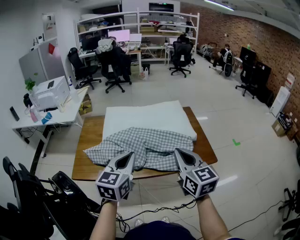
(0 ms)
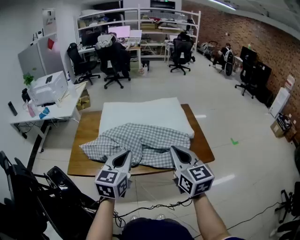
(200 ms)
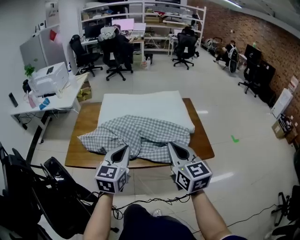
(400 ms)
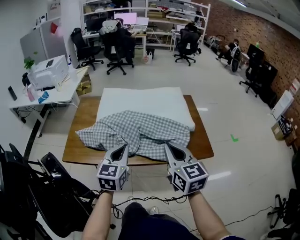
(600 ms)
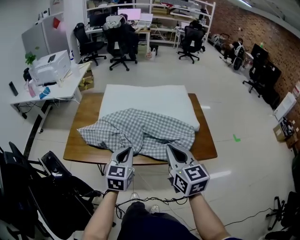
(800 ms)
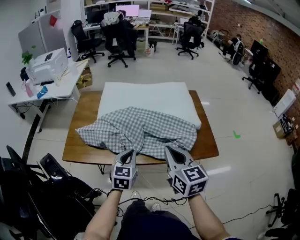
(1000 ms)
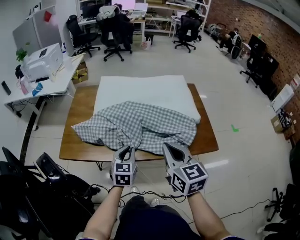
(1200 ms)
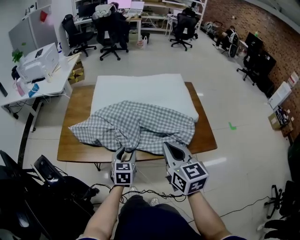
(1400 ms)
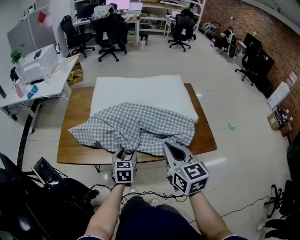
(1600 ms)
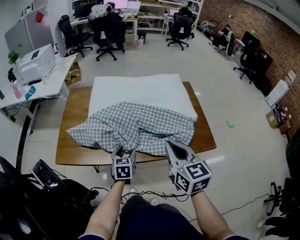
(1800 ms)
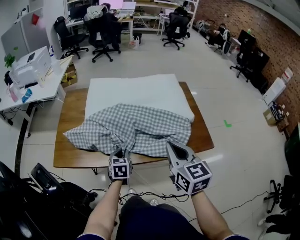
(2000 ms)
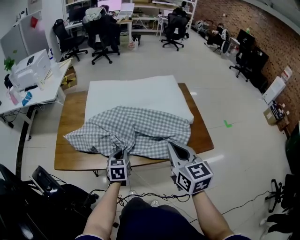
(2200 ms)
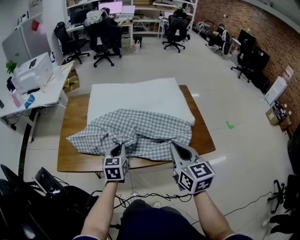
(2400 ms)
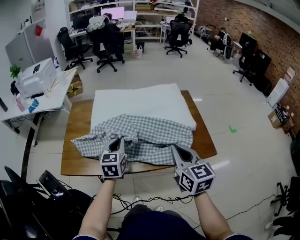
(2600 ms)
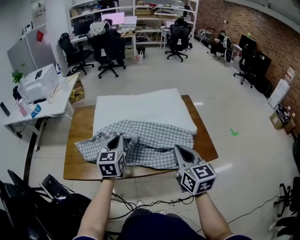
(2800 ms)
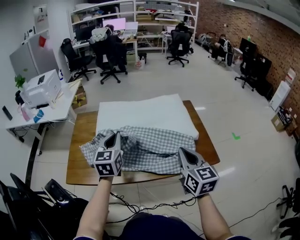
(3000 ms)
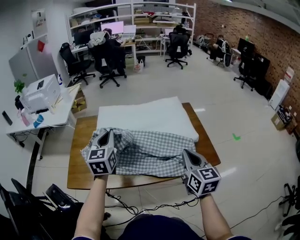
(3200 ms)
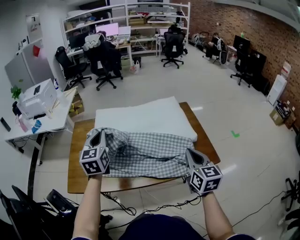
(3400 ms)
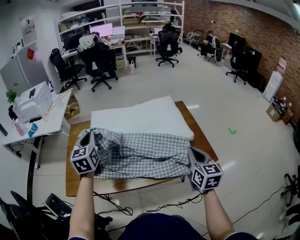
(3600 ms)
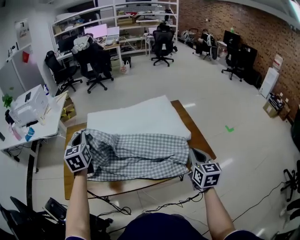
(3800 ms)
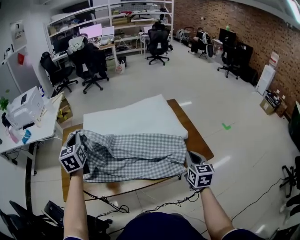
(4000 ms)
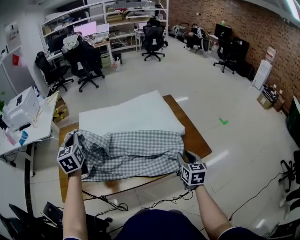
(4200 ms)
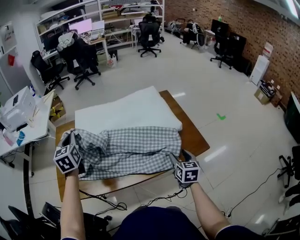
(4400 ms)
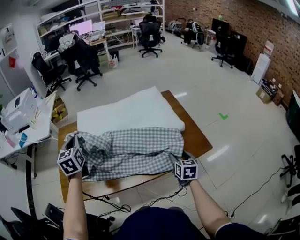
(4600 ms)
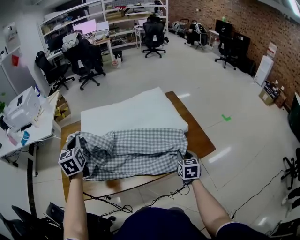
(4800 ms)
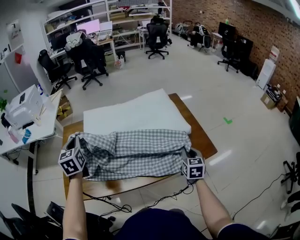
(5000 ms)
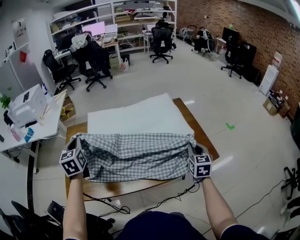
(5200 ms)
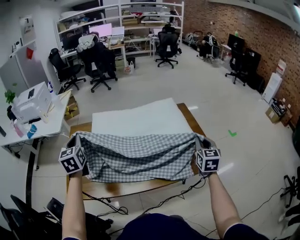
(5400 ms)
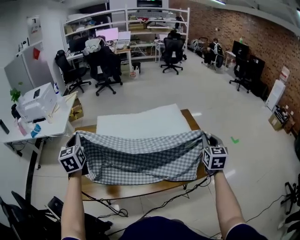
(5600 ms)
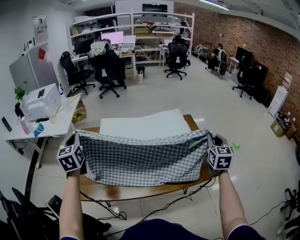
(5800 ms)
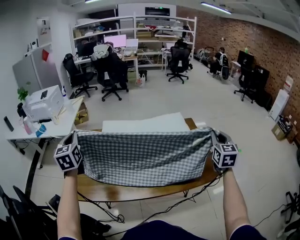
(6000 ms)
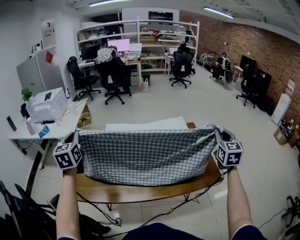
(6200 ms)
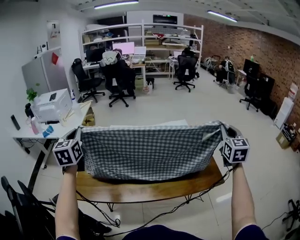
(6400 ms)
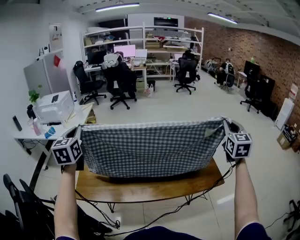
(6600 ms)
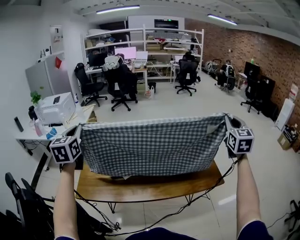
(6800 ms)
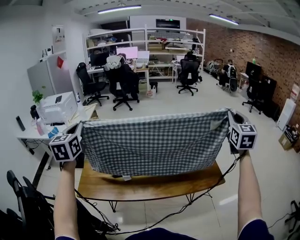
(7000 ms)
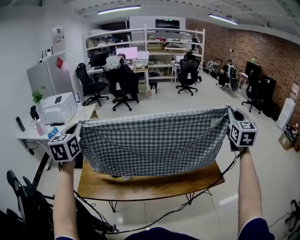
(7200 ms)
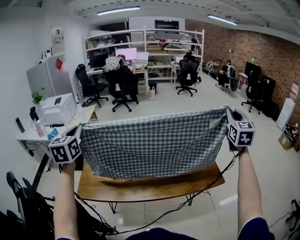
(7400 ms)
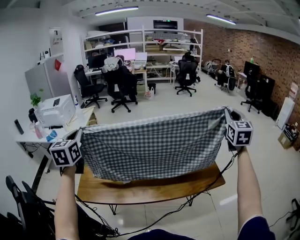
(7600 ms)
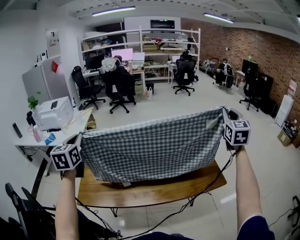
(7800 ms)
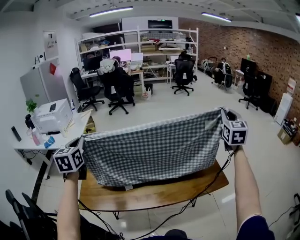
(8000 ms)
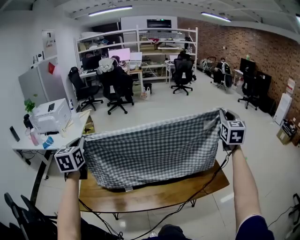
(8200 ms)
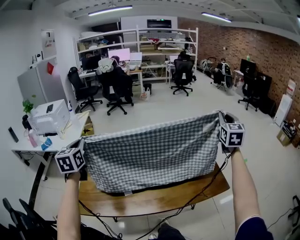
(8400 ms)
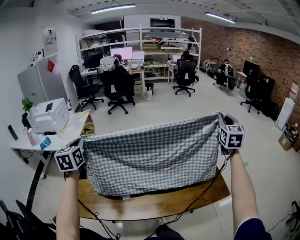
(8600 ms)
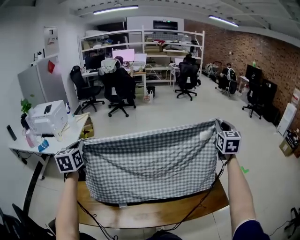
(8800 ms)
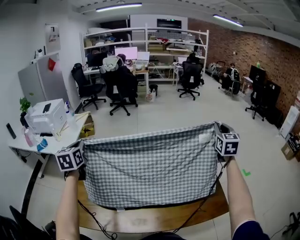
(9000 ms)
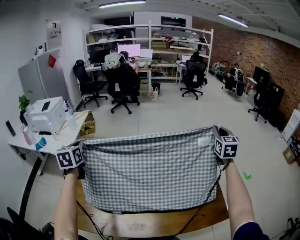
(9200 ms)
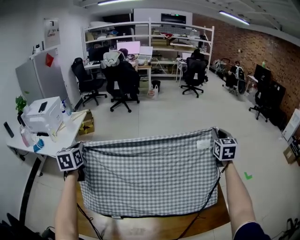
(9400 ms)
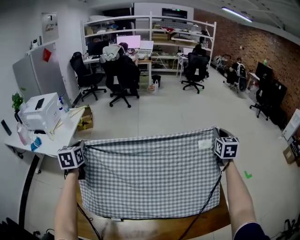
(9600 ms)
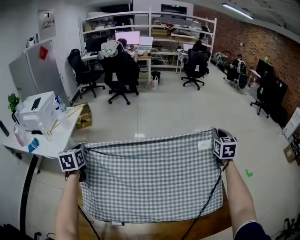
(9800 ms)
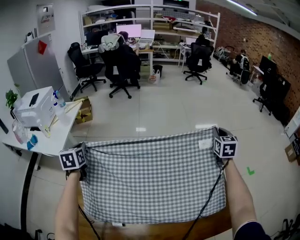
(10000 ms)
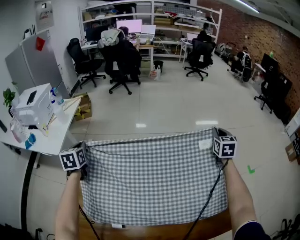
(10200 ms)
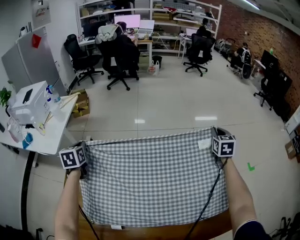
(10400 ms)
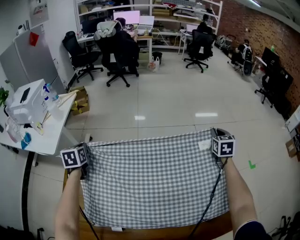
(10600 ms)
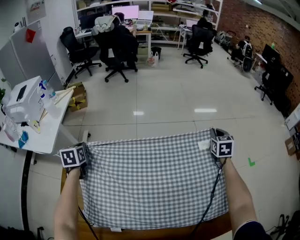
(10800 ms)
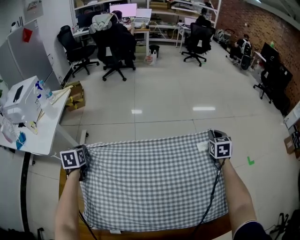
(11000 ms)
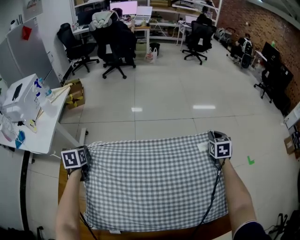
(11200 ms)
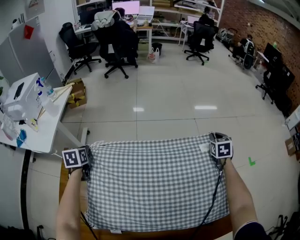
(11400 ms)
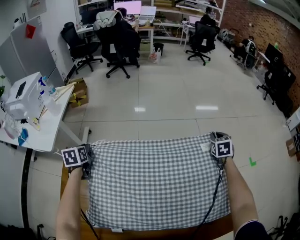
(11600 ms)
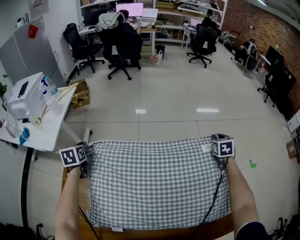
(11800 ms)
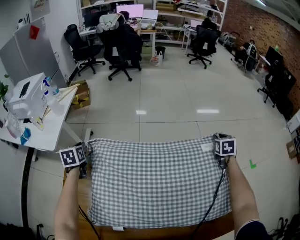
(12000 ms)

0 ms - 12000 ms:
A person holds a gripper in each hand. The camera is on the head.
0 ms - 1600 ms: The left gripper is displaced downward by roughly 25 cm, swivels roughly 30 degrees, and opens up. Meanwhile the right gripper goes roughly 10 cm downward.
1600 ms - 3000 ms: The right gripper is displaced to the right by approximately 5 cm. Meanwhile the left gripper is displaced upward and forward by some 25 cm, swivels some 20 degrees, and closes up.
3000 ms - 4400 ms: The left gripper travels to the left and forward by about 15 cm. Meanwhile the right gripper goes about 20 cm downward and to the right, turns by approximately 30 degrees, and opens its fingers.
4400 ms - 6000 ms: The left gripper is displaced to the left and upward by some 15 cm. Meanwhile the right gripper goes roughly 25 cm upward and forward, rotates roughly 30 degrees, and closes.
6000 ms - 7600 ms: The right gripper is displaced upward by approximately 15 cm. Meanwhile the left gripper goes some 10 cm upward.
7600 ms - 9000 ms: The two grippers go approximately 20 cm forward and downward.
9000 ms - 10400 ms: Both grippers move downward and forward, about 25 cm. The right gripper rotates roughly 20 degrees.
10400 ms - 12000 ms: The left gripper travels downward by roughly 5 cm. Meanwhile the right gripper shifts approximately 10 cm downward.

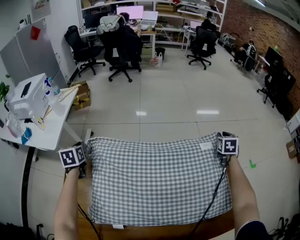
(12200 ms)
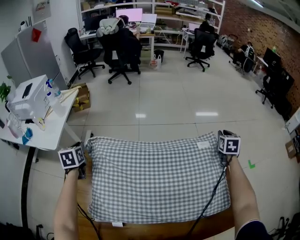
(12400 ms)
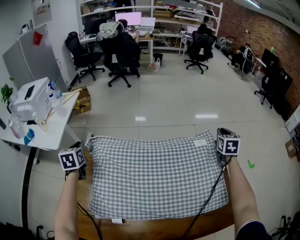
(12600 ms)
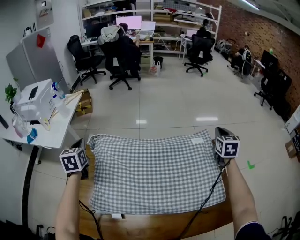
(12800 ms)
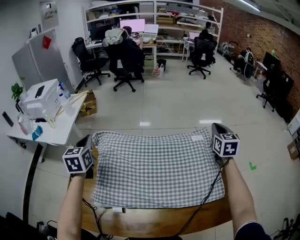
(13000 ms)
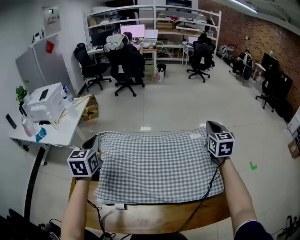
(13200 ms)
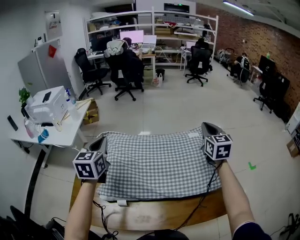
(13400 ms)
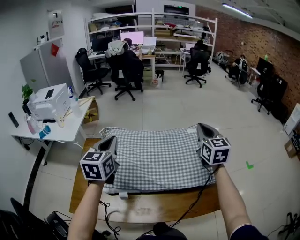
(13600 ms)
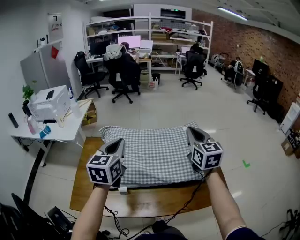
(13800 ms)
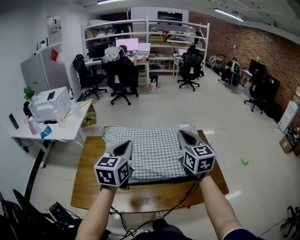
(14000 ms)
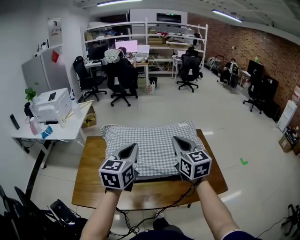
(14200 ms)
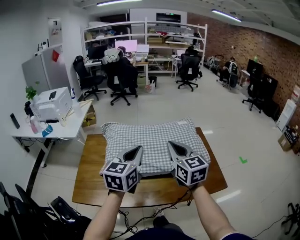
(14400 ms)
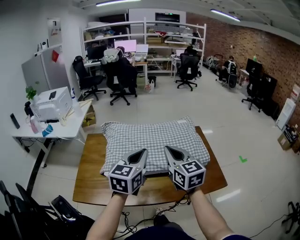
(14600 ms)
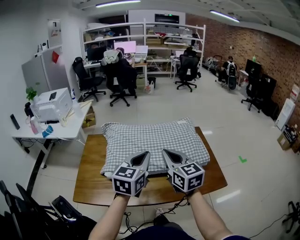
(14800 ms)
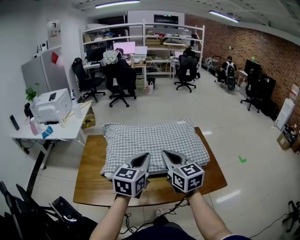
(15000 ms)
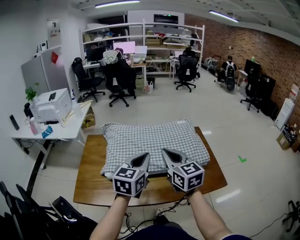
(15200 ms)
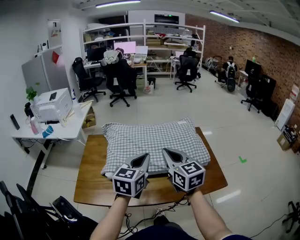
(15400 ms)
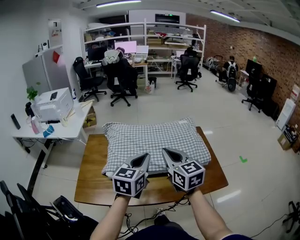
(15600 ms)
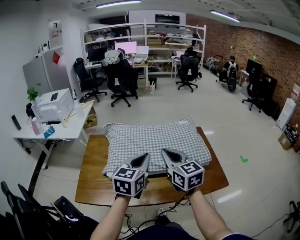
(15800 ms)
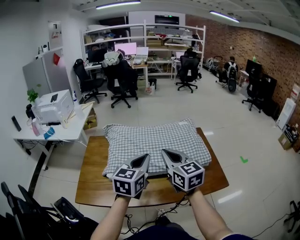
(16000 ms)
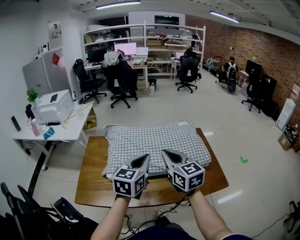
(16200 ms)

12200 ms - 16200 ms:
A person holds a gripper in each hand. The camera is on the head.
12200 ms - 13600 ms: The right gripper moves upward, backward and to the left, approximately 35 cm, tips its fingers upward by about 30 degrees, and closes its fingers, while the left gripper shifts approximately 35 cm upward, to the right and backward, and turns by roughly 40 degrees.
13600 ms - 14800 ms: The left gripper is displaced backward and to the right by roughly 20 cm. The right gripper goes approximately 25 cm backward and to the left.
14800 ms - 16200 ms: The grippers stay close to where they were, moving slightly.

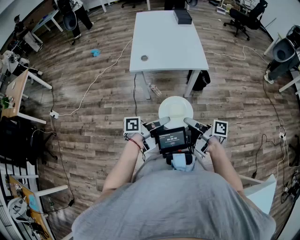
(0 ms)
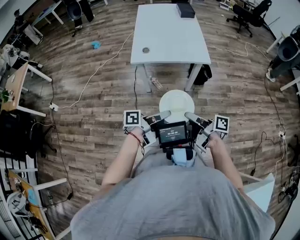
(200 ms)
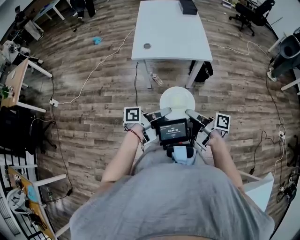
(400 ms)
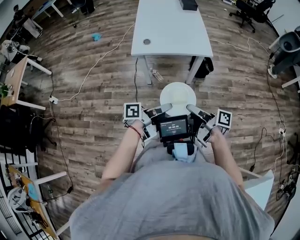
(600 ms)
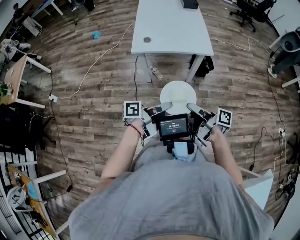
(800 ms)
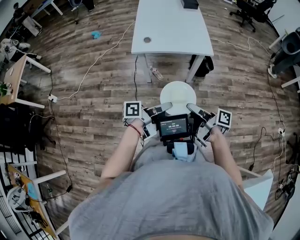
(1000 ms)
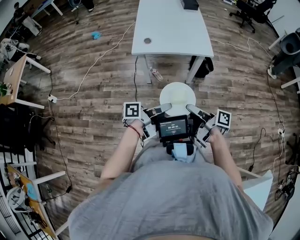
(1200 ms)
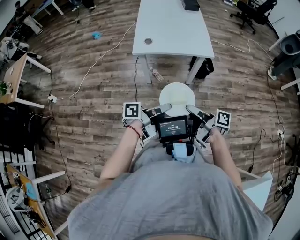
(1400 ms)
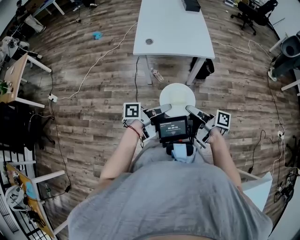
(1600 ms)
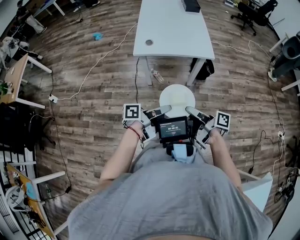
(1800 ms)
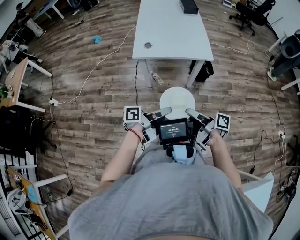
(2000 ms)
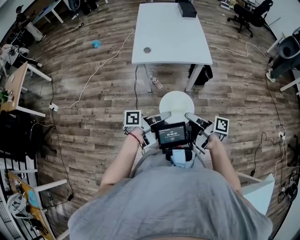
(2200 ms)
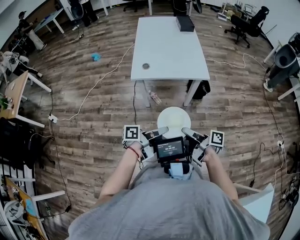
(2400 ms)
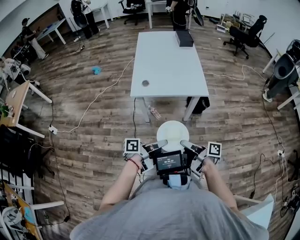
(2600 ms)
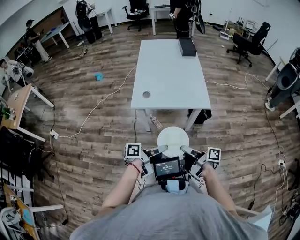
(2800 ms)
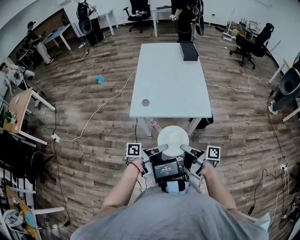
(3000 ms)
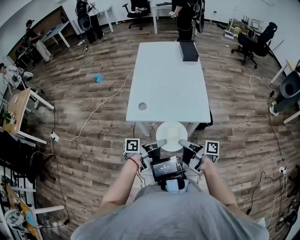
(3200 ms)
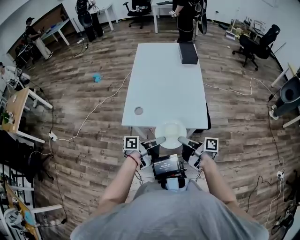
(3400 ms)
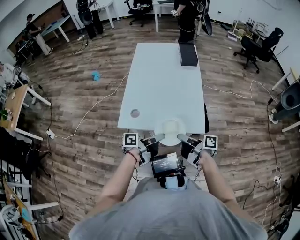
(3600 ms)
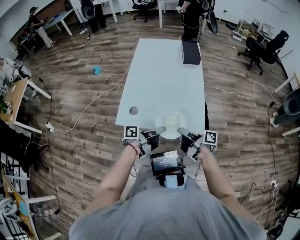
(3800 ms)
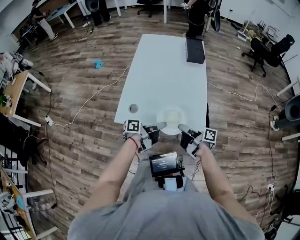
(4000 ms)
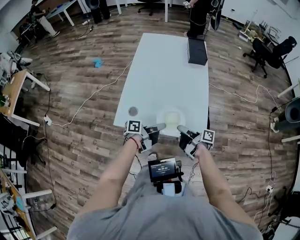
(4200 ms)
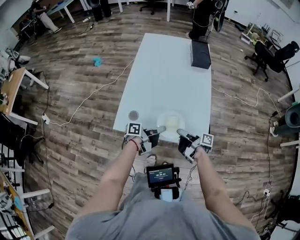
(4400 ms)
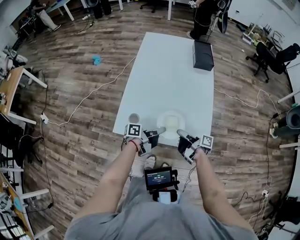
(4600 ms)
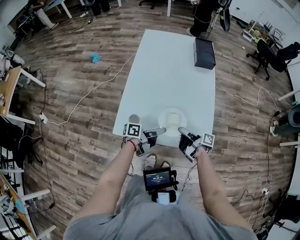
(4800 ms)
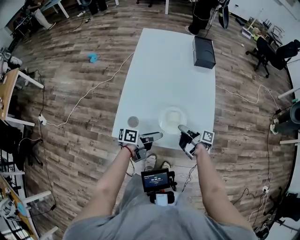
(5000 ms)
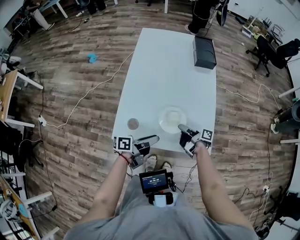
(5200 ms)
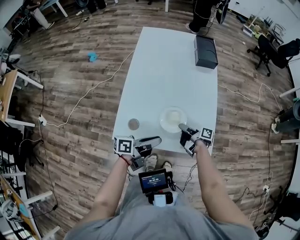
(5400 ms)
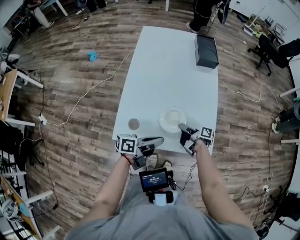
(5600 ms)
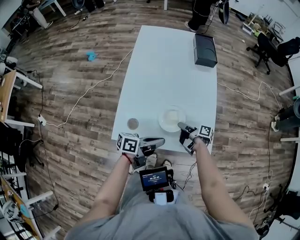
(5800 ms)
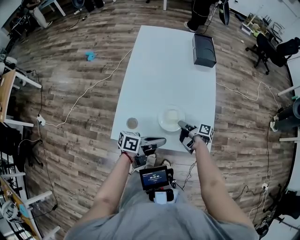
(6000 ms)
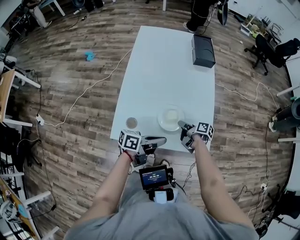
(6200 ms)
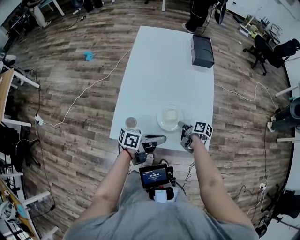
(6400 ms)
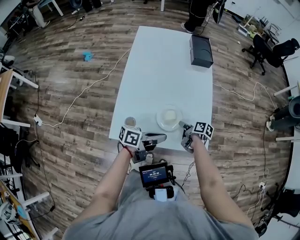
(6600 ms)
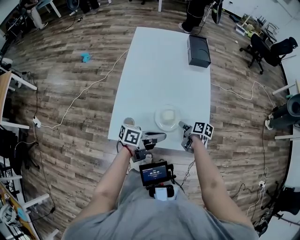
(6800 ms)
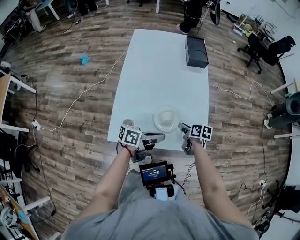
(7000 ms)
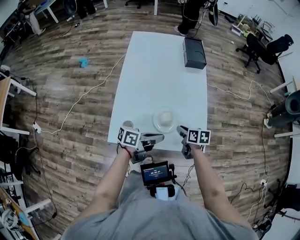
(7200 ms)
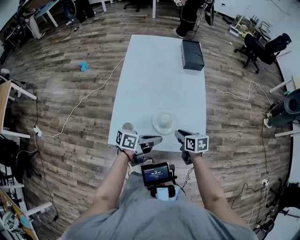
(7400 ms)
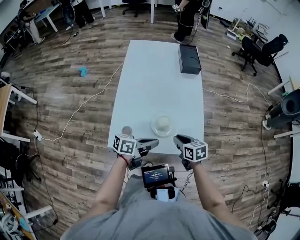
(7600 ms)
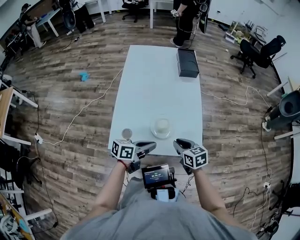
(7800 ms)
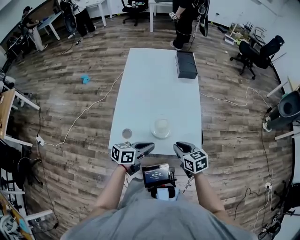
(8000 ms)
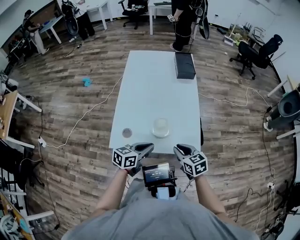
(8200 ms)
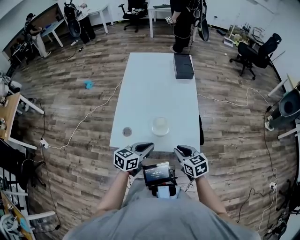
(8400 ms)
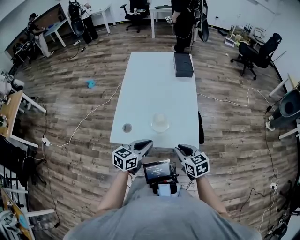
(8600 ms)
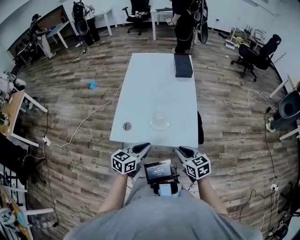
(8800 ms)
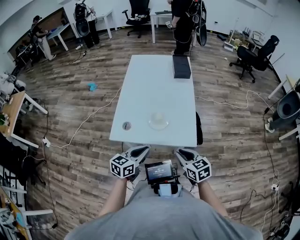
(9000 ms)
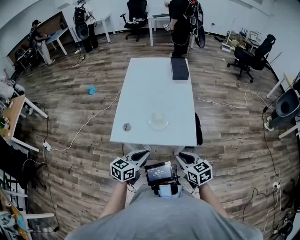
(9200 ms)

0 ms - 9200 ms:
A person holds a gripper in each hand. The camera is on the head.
0 ms - 1600 ms: The grippers make only small movements.
1600 ms - 3000 ms: Both grippers travel together forward, about 15 cm.
3000 ms - 4600 ms: The two grippers go about 30 cm forward.
4600 ms - 6200 ms: The right gripper goes some 10 cm forward and downward, and changes its angle by roughly 30 degrees. The left gripper changes its angle by about 20 degrees, and opens, then closes once more.
6200 ms - 7600 ms: The right gripper travels upward and backward by about 15 cm, and rolls counterclockwise, seen from behind, by roughly 50 degrees.
7600 ms - 9200 ms: The right gripper moves backward and upward, roughly 20 cm. Meanwhile the left gripper goes roughly 15 cm backward, and changes its angle by about 40 degrees.
